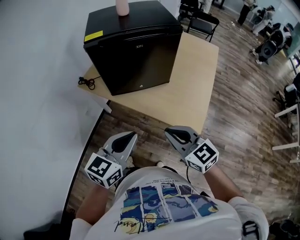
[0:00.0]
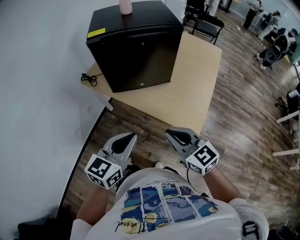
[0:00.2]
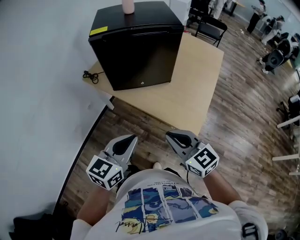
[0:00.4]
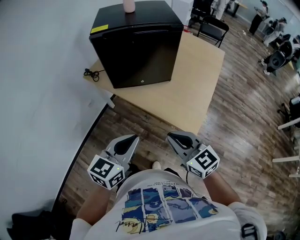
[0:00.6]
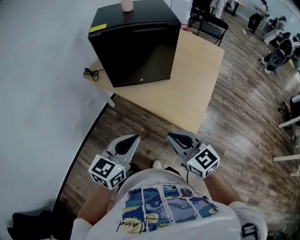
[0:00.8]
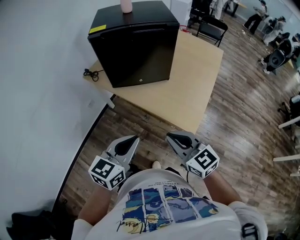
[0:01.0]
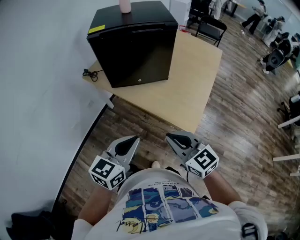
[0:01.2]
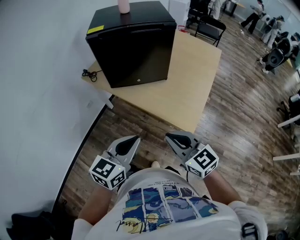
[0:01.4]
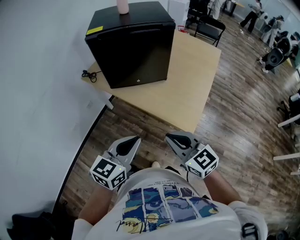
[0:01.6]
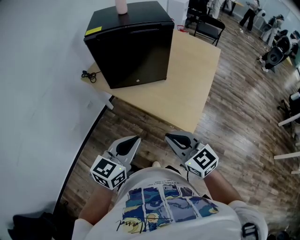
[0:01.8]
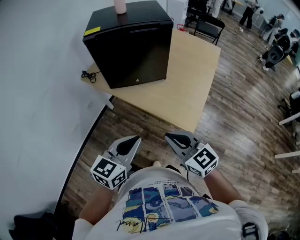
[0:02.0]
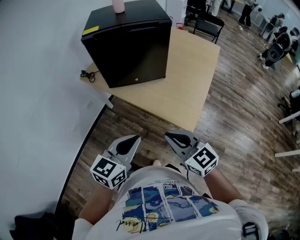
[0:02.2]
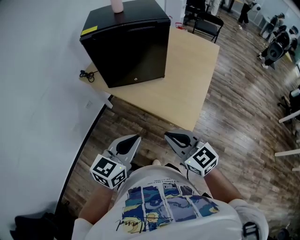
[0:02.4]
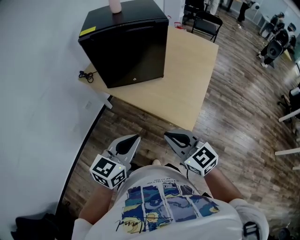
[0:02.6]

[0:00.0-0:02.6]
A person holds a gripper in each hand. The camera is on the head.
0:00.0 to 0:01.2: The grippers both shift backward by approximately 5 cm.
0:01.2 to 0:02.6: The grippers make only small movements.

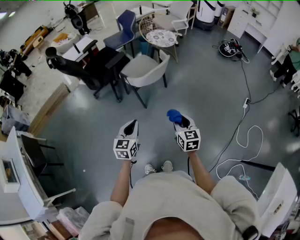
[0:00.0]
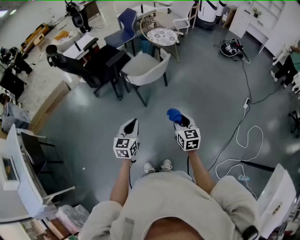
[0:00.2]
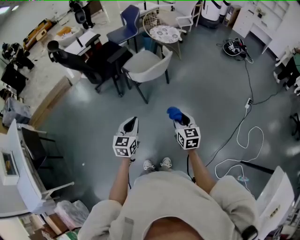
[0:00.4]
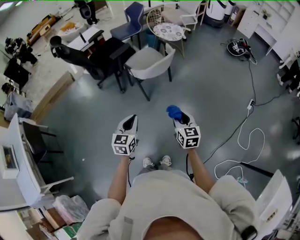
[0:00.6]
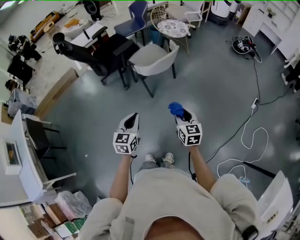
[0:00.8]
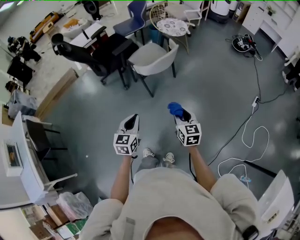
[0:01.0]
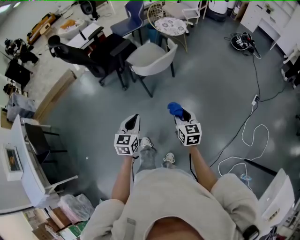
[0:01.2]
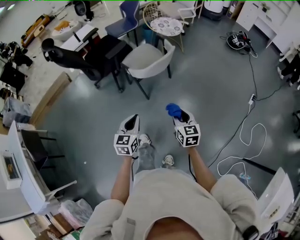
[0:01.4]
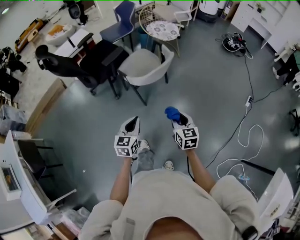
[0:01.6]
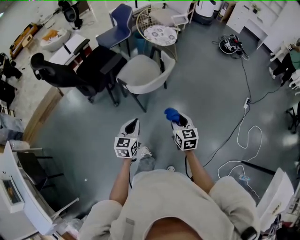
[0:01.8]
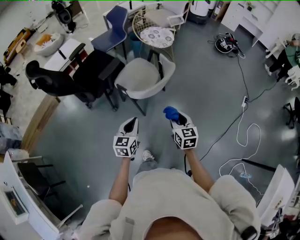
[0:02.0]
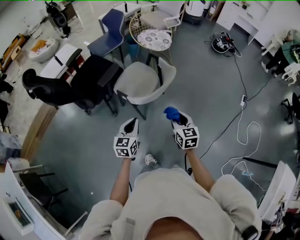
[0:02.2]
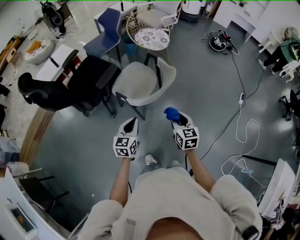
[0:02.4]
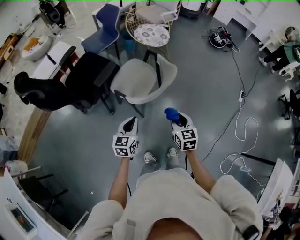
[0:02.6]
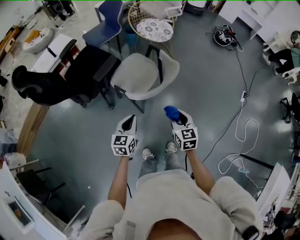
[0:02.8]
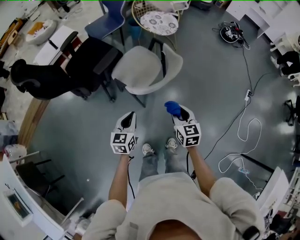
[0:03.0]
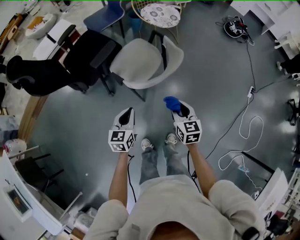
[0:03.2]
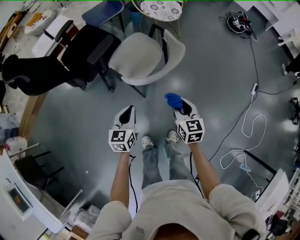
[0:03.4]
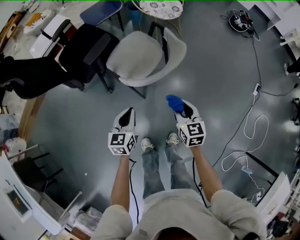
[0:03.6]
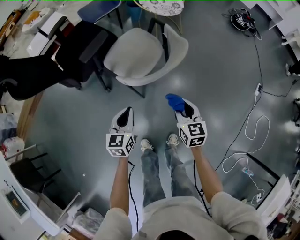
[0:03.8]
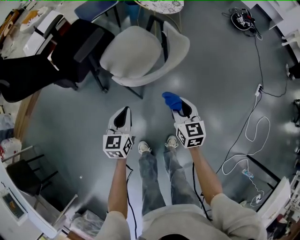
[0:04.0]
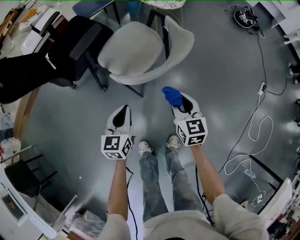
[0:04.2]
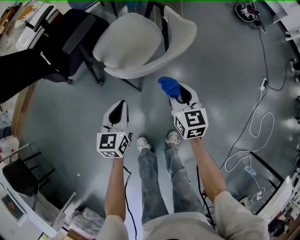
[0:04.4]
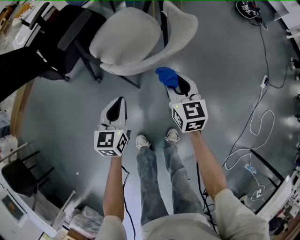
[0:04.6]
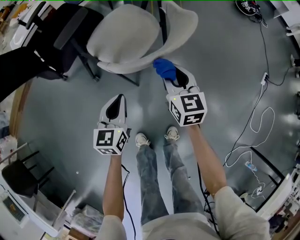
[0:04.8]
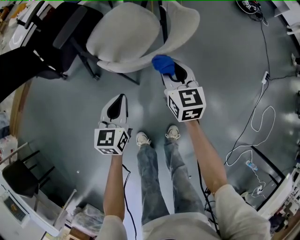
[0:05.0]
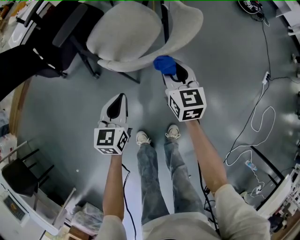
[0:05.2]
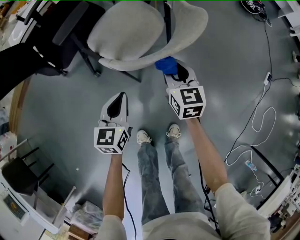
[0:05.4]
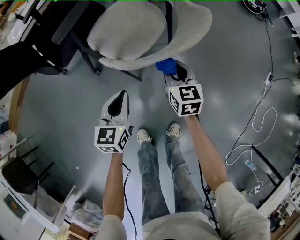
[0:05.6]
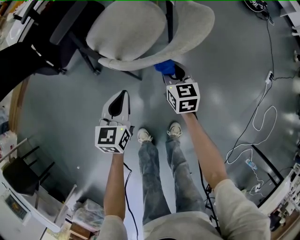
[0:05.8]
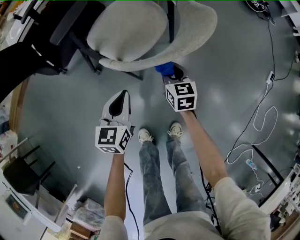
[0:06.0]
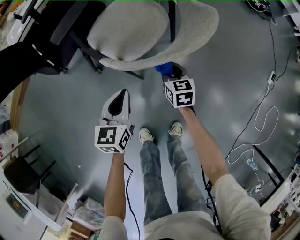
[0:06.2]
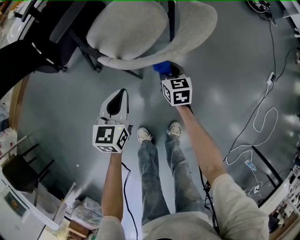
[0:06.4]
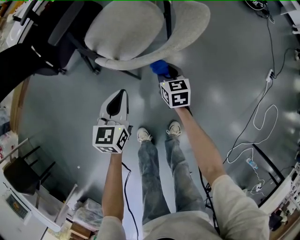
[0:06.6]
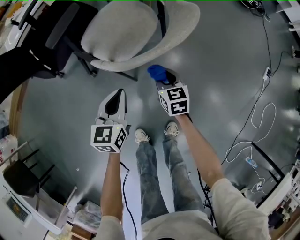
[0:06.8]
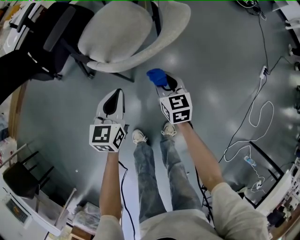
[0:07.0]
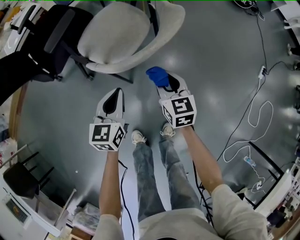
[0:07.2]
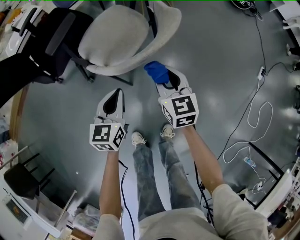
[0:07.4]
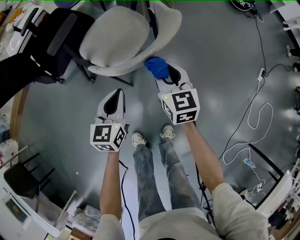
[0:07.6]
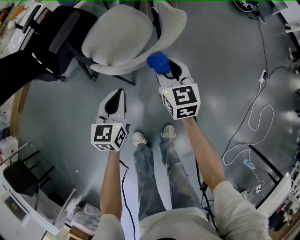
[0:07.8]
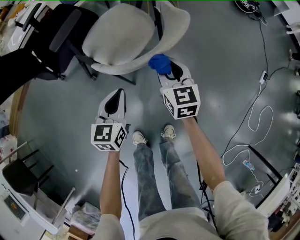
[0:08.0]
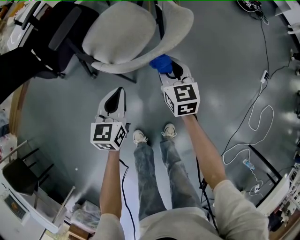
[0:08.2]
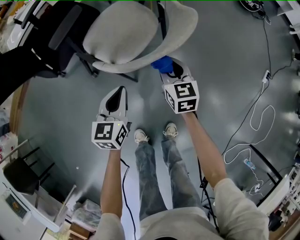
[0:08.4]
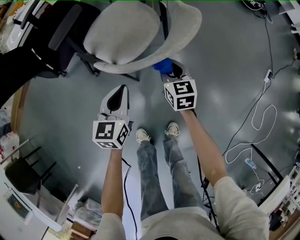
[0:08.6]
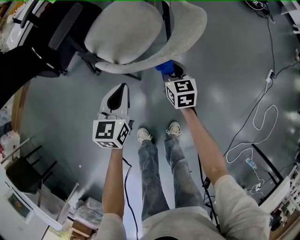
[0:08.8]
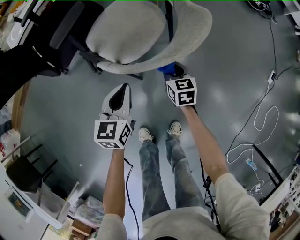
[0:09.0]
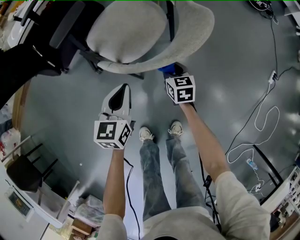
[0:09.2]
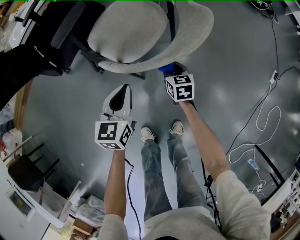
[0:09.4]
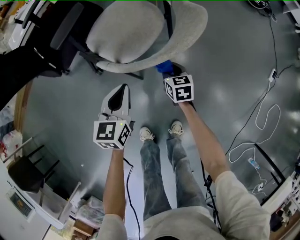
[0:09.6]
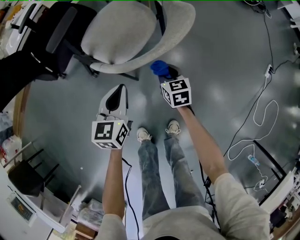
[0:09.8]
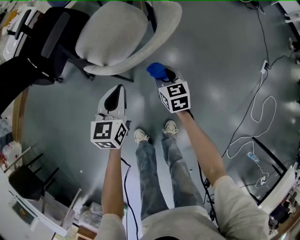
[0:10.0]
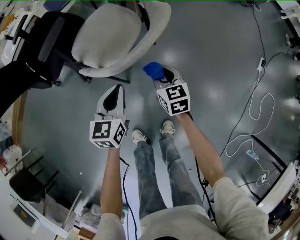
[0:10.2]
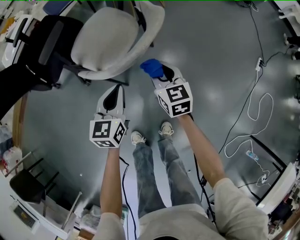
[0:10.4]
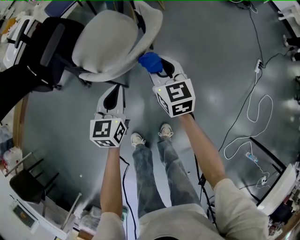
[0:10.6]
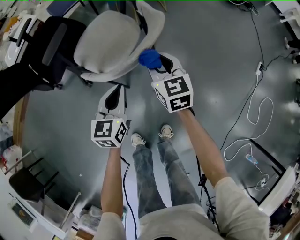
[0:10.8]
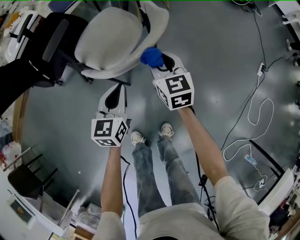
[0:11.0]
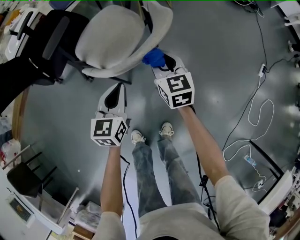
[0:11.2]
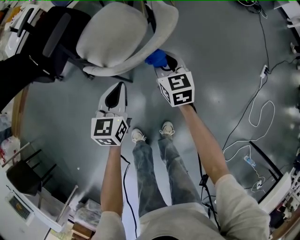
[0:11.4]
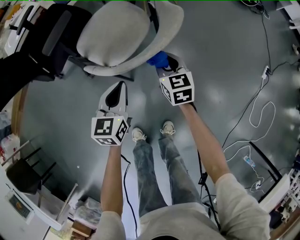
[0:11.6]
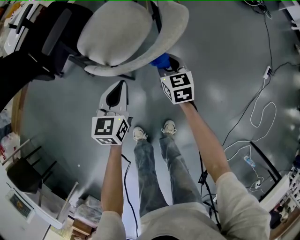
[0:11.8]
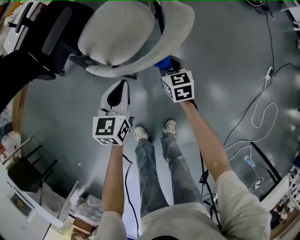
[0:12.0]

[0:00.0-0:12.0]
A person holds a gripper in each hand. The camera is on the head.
0:00.0 to 0:01.6: The two grippers go about 10 cm forward.
0:01.6 to 0:03.0: Both grippers travel together forward and to the left, roughly 20 cm.
0:03.0 to 0:04.4: The left gripper moves downward, some 15 cm. The right gripper is displaced downward and forward by approximately 20 cm.
0:04.4 to 0:06.0: The left gripper travels downward by about 5 cm. The right gripper travels downward and forward by approximately 15 cm.
0:06.0 to 0:07.6: The right gripper goes approximately 15 cm upward, while the left gripper moves upward and to the right, some 10 cm.
0:07.6 to 0:09.0: The left gripper changes place by some 5 cm, while the right gripper moves downward, some 15 cm.
0:09.0 to 0:10.4: The left gripper heads to the right, covering some 10 cm. Meanwhile the right gripper shifts some 15 cm upward and to the right.
0:10.4 to 0:12.0: The right gripper shifts roughly 10 cm downward and forward. Meanwhile the left gripper moves roughly 5 cm.

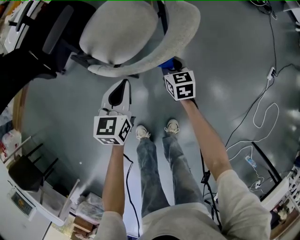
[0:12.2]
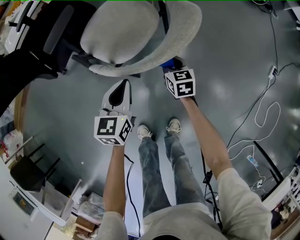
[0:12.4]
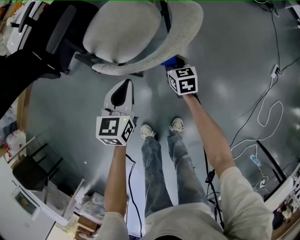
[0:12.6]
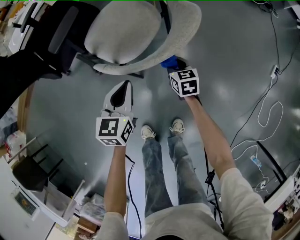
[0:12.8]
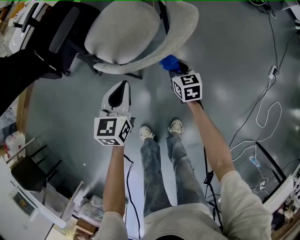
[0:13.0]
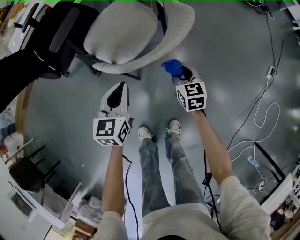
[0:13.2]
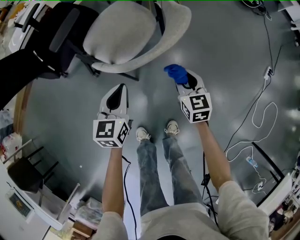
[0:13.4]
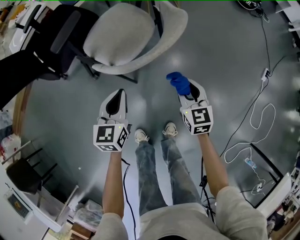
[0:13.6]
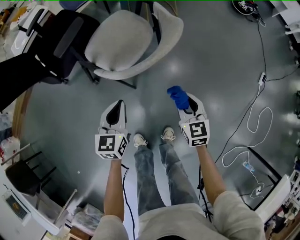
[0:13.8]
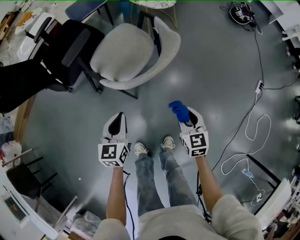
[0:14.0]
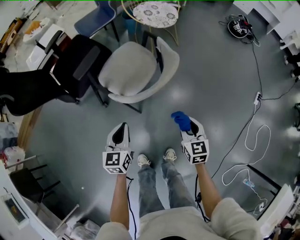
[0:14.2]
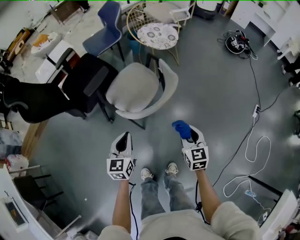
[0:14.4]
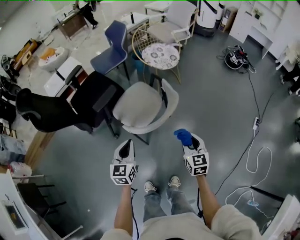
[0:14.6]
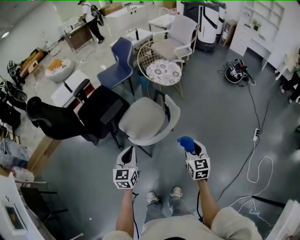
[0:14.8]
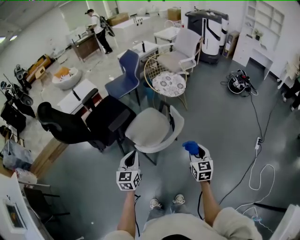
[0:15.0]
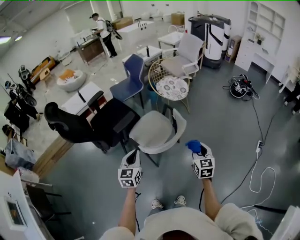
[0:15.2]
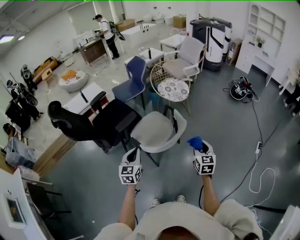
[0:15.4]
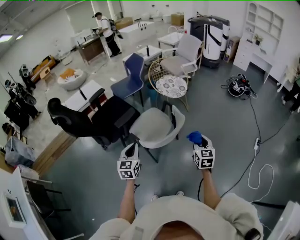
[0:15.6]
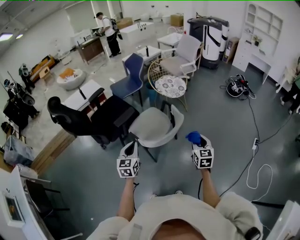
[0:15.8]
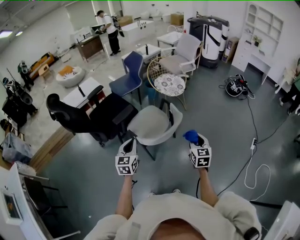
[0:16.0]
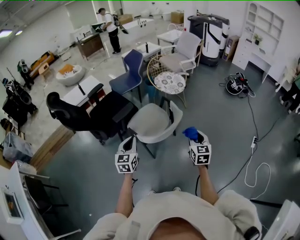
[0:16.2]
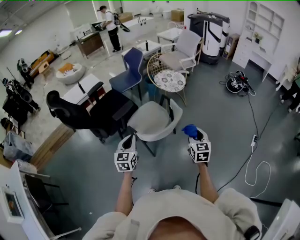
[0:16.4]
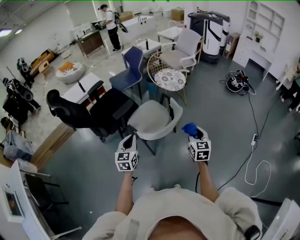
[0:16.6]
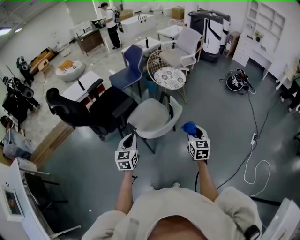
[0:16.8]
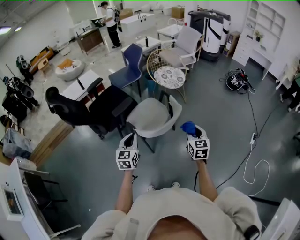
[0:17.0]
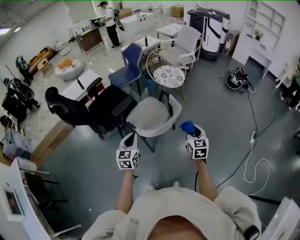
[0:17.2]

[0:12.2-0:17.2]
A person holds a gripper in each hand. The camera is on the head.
0:12.2 to 0:13.8: The right gripper shifts roughly 20 cm backward and upward; the left gripper travels backward by some 10 cm.
0:13.8 to 0:15.6: Both grippers move upward, approximately 30 cm.
0:15.6 to 0:17.2: The grippers move only a little.

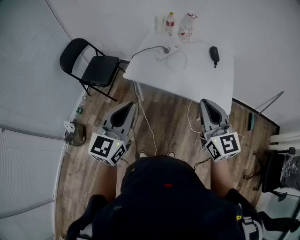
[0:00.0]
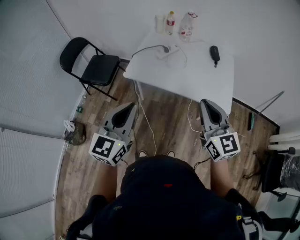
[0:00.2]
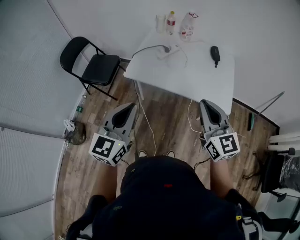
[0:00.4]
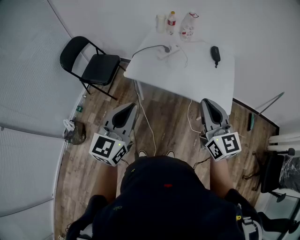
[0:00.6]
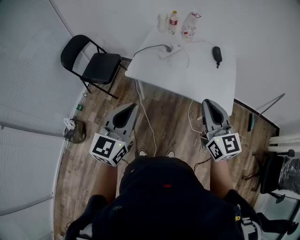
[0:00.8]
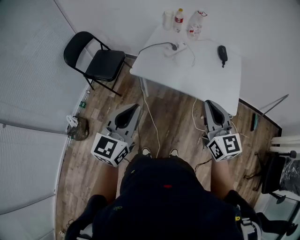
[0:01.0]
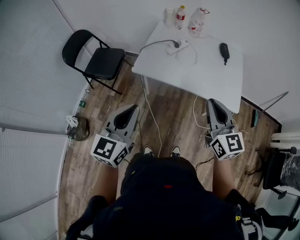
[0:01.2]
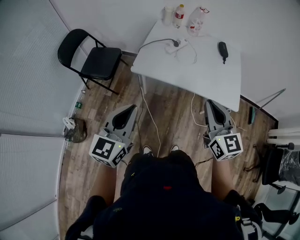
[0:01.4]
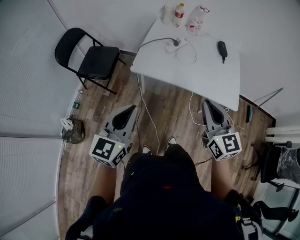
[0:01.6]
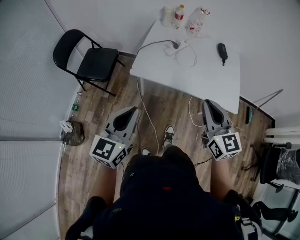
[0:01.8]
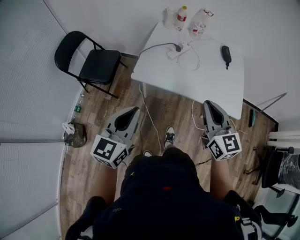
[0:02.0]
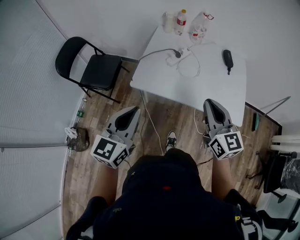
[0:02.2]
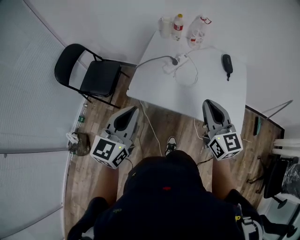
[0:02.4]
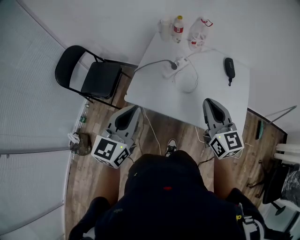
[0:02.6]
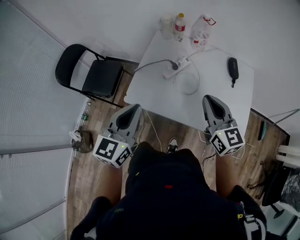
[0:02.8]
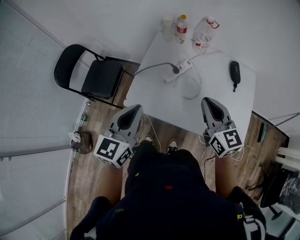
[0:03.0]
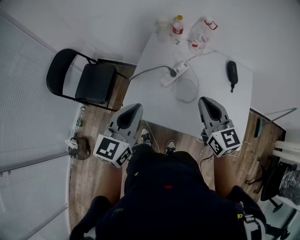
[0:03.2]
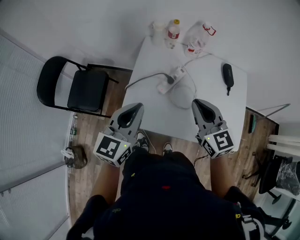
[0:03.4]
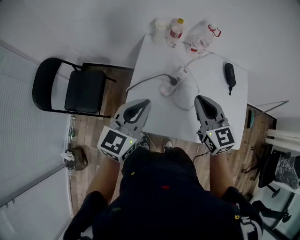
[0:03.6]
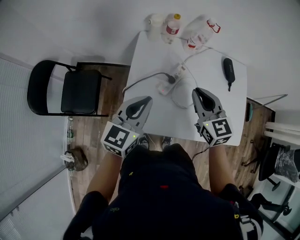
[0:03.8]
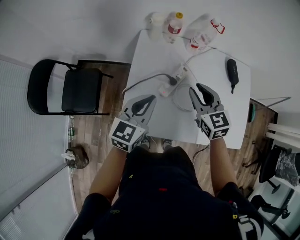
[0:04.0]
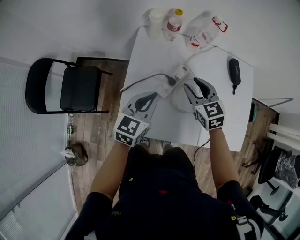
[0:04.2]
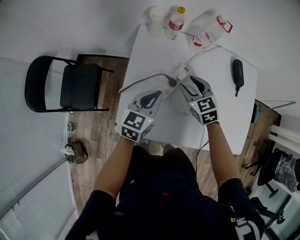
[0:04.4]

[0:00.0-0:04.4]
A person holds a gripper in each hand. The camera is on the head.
0:00.0 to 0:01.4: Both grippers travel together to the left, approximately 10 cm.
0:01.4 to 0:03.0: The two grippers go approximately 30 cm forward.
0:03.0 to 0:04.4: Both grippers move forward and downward, about 30 cm. The right gripper rotates about 30 degrees, and opens up; the left gripper swivels about 20 degrees.
